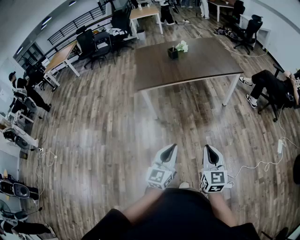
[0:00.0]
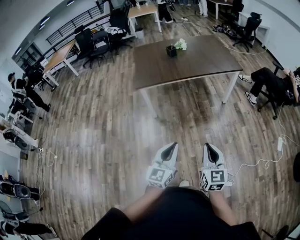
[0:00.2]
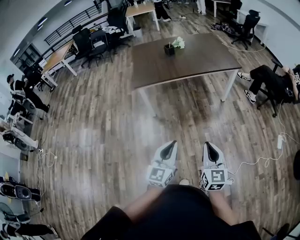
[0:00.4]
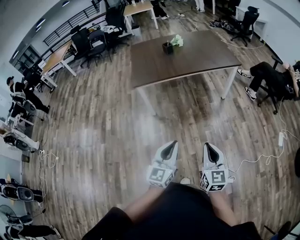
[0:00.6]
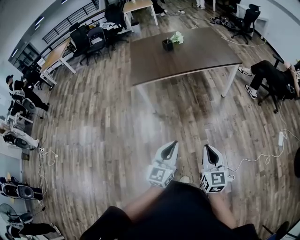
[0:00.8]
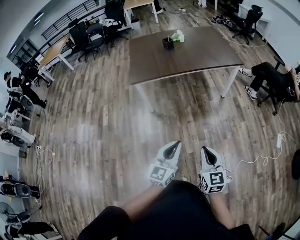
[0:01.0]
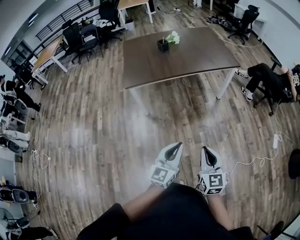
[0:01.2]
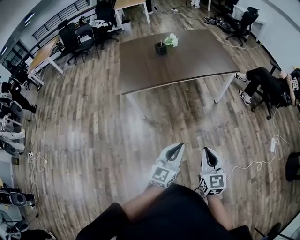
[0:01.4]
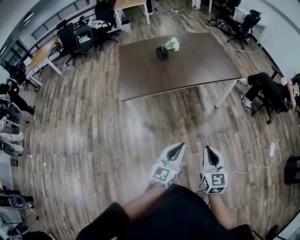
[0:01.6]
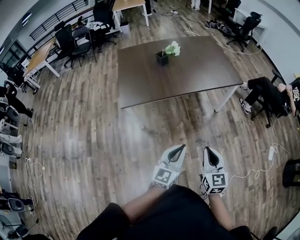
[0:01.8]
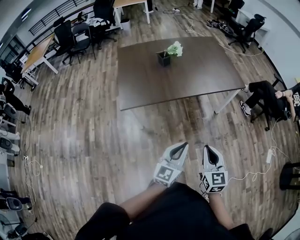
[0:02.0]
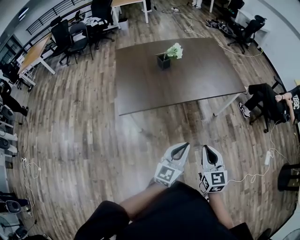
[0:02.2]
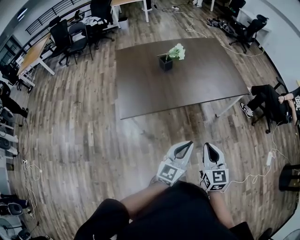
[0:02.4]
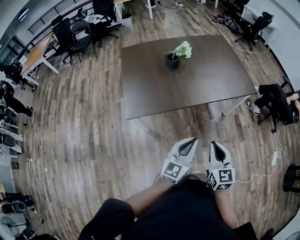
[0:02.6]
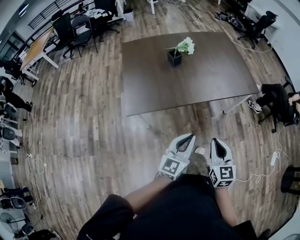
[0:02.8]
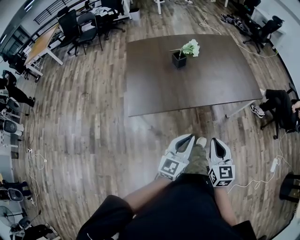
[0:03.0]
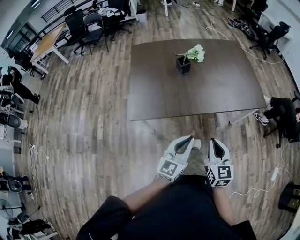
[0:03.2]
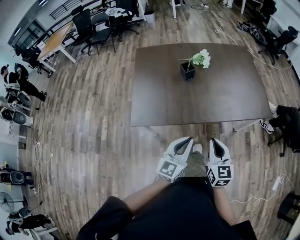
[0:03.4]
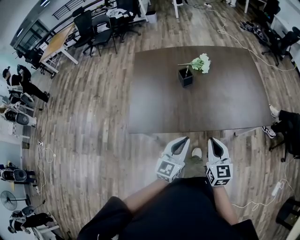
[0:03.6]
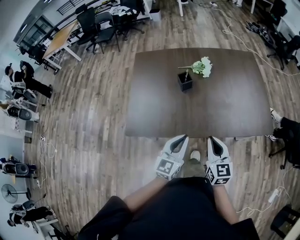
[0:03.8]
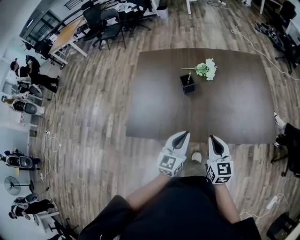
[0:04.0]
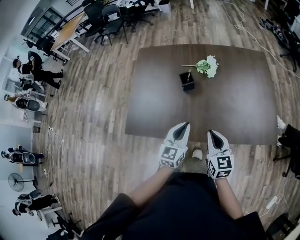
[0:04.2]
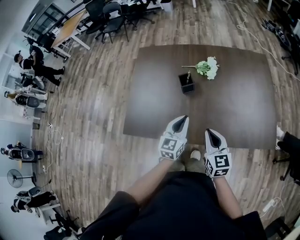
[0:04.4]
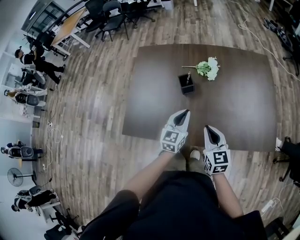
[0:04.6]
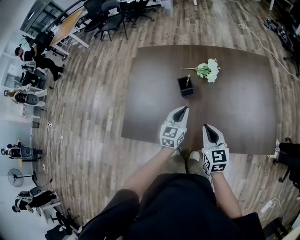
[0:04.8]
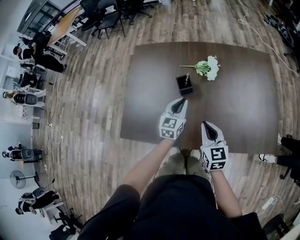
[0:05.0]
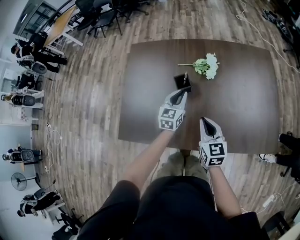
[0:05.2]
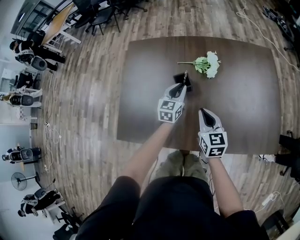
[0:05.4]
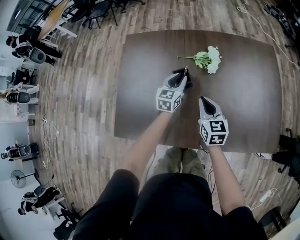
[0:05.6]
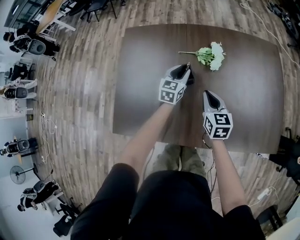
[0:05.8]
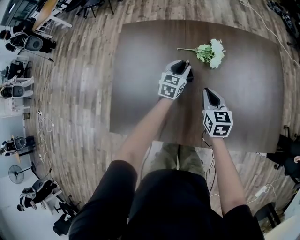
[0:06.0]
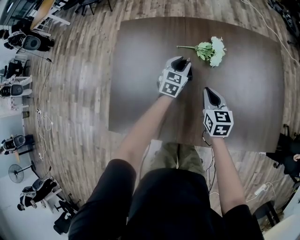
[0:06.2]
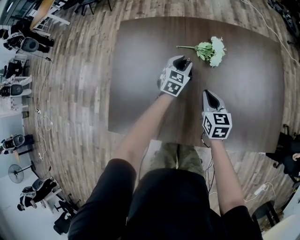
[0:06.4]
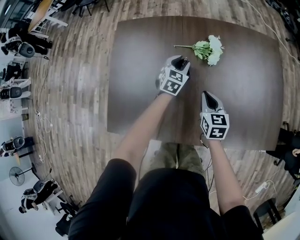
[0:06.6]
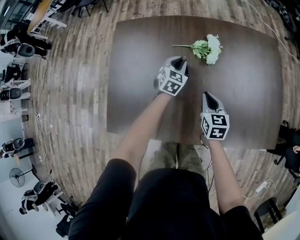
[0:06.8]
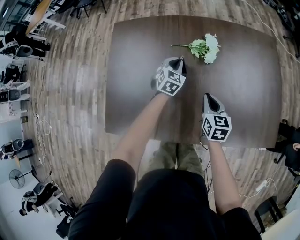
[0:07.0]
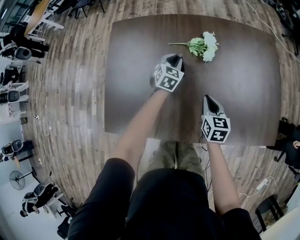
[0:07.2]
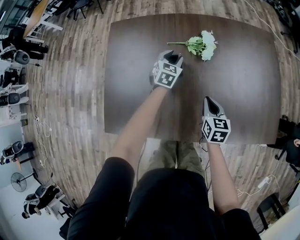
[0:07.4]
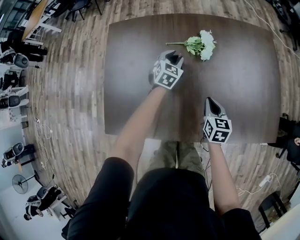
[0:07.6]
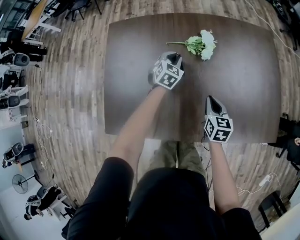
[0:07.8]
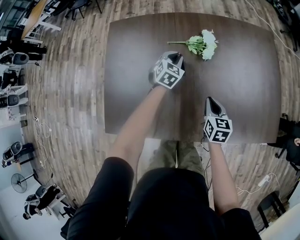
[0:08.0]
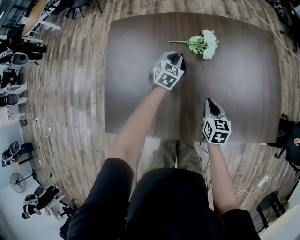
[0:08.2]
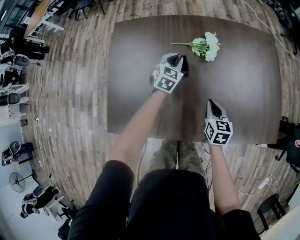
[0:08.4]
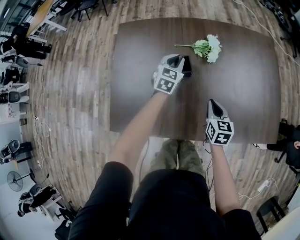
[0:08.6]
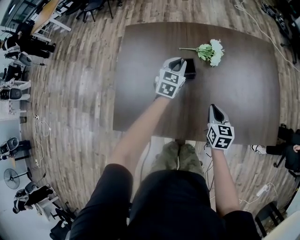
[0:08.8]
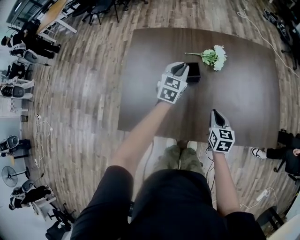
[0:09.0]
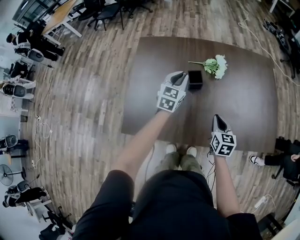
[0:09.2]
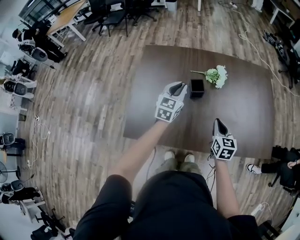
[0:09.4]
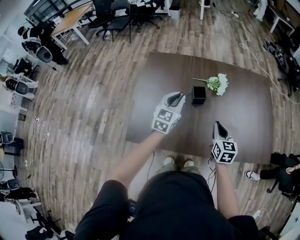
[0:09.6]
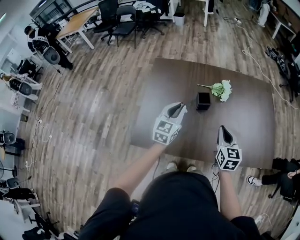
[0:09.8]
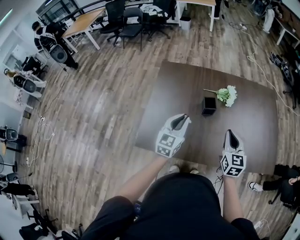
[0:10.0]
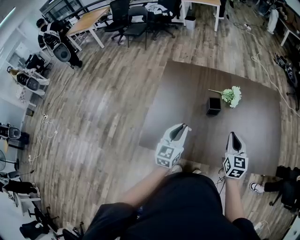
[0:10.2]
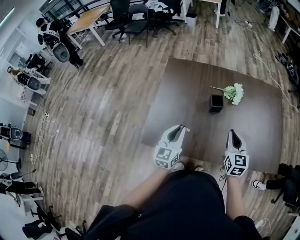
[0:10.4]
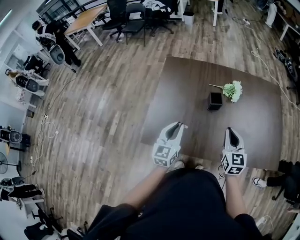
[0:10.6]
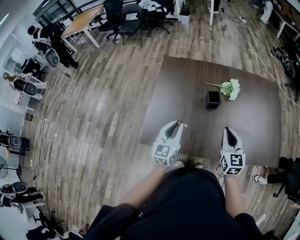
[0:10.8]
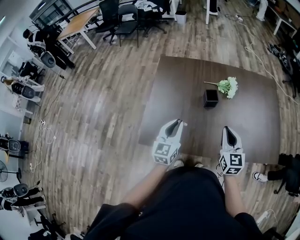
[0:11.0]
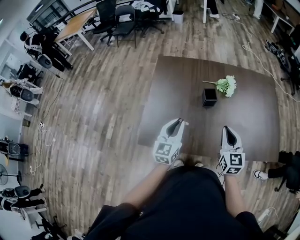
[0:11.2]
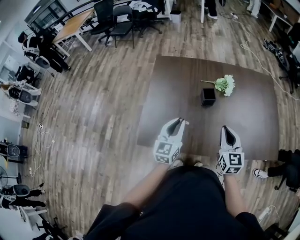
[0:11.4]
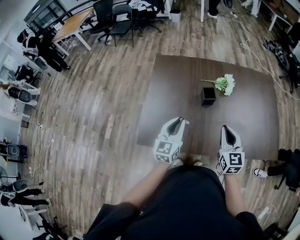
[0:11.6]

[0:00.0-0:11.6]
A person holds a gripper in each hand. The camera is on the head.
0:00.0 to 0:01.4: Both grippers move forward, roughly 20 cm.
0:01.4 to 0:02.8: The grippers both shift forward and to the left by approximately 40 cm.
0:02.8 to 0:04.4: The pair of grippers is taken roughly 50 cm. The right gripper changes its angle by about 30 degrees. Meanwhile the left gripper turns by about 30 degrees.
0:04.4 to 0:05.8: Both grippers move forward and downward, some 30 cm. The left gripper opens its fingers.
0:05.8 to 0:07.2: Both grippers move downward, roughly 5 cm. The left gripper rotates approximately 20 degrees.
0:07.2 to 0:08.8: The left gripper heads upward and backward, covering roughly 10 cm, and opens and closes again. Meanwhile the right gripper goes some 5 cm backward.
0:08.8 to 0:10.2: The right gripper shifts some 20 cm upward, and rotates about 20 degrees; the left gripper travels backward, upward and to the left by about 35 cm, and rotates roughly 20 degrees.
0:10.2 to 0:11.6: There are only small adjustments of the grippers.

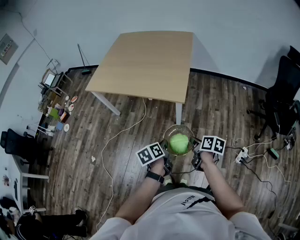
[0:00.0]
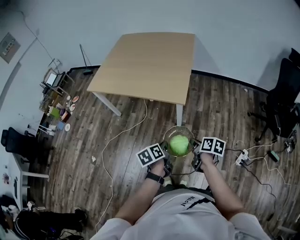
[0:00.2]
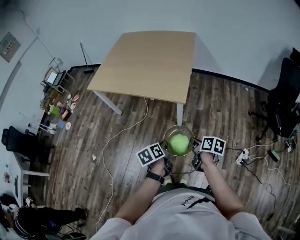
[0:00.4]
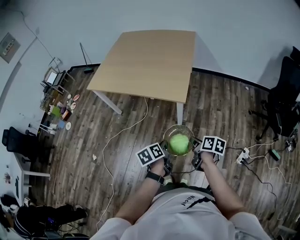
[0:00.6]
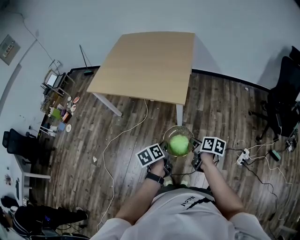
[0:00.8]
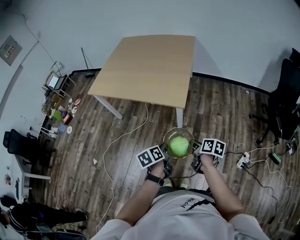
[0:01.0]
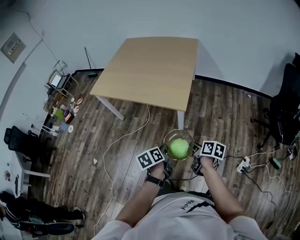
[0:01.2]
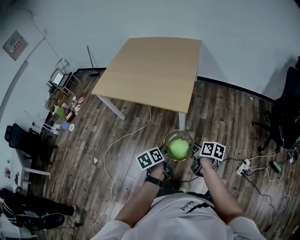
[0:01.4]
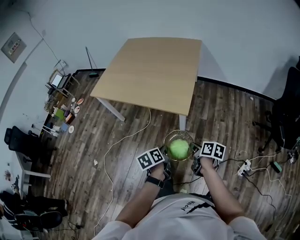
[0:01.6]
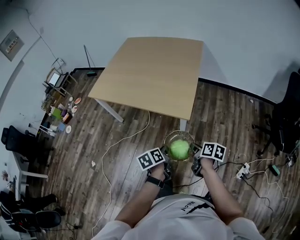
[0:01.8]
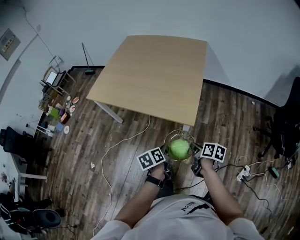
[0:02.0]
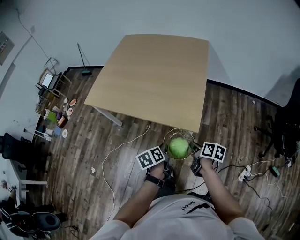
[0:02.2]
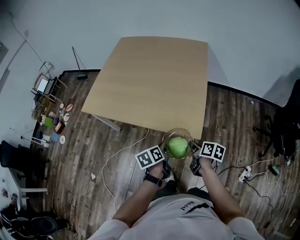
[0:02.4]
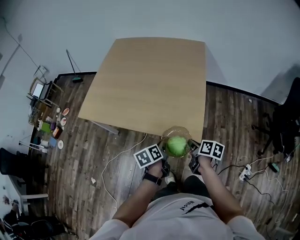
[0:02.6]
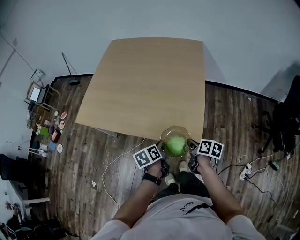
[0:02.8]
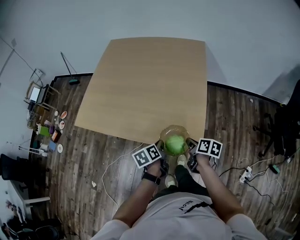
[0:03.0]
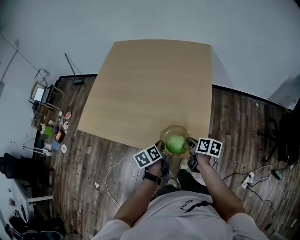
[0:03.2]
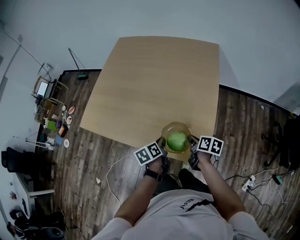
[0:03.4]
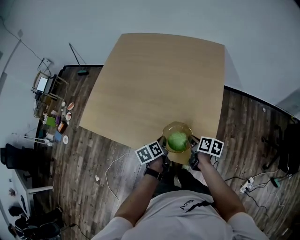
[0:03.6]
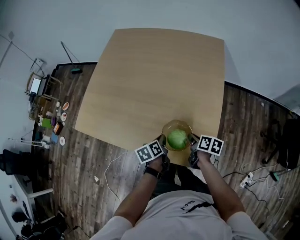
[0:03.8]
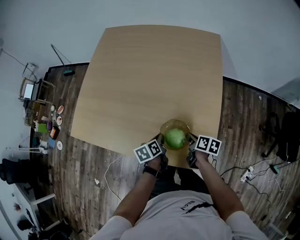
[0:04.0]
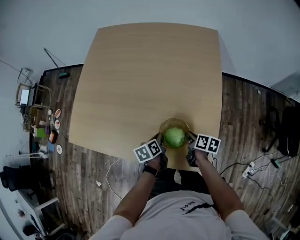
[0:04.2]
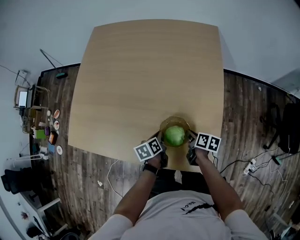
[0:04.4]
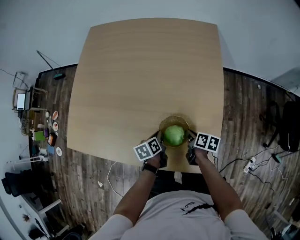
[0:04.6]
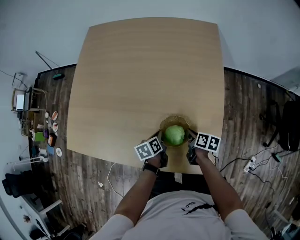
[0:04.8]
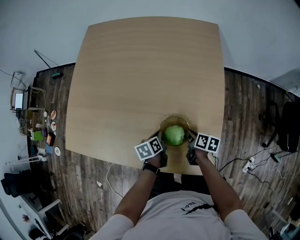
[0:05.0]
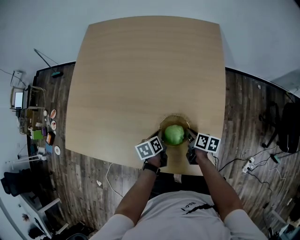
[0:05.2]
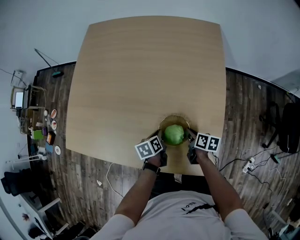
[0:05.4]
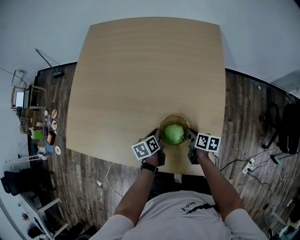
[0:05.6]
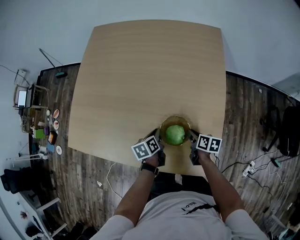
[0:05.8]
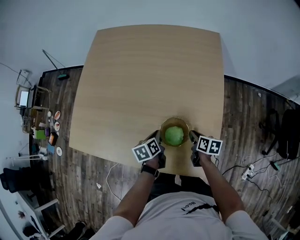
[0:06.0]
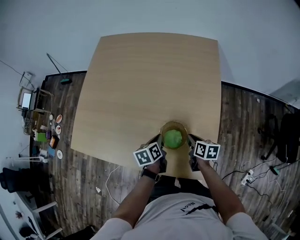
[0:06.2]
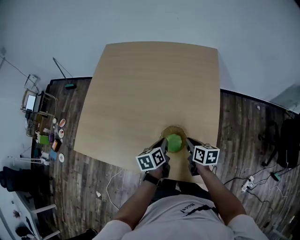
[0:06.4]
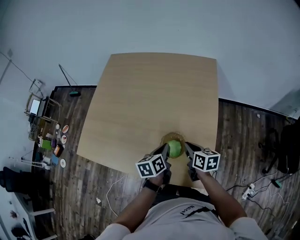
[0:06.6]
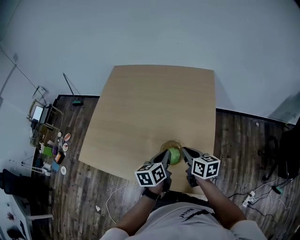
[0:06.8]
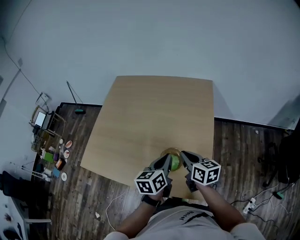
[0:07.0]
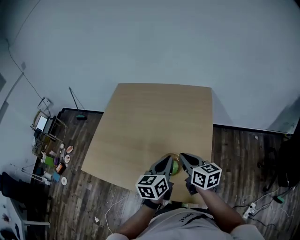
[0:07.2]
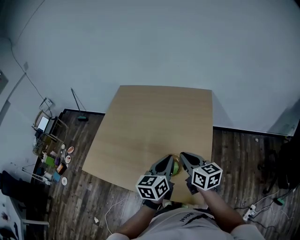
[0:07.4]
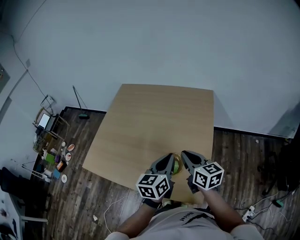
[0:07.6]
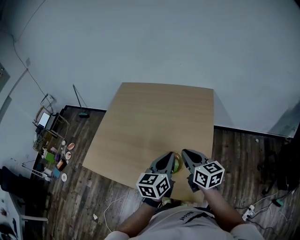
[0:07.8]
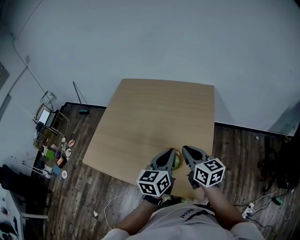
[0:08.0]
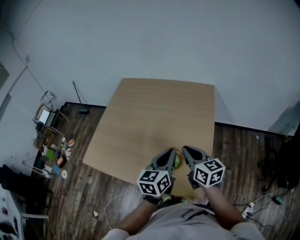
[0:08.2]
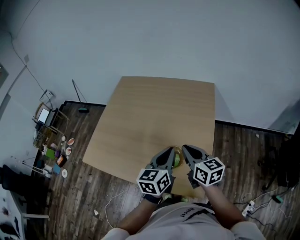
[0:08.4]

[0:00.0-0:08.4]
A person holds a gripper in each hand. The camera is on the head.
0:00.0 to 0:01.4: The grippers move only a little.
0:01.4 to 0:02.8: The grippers both shift forward by approximately 30 cm.
0:02.8 to 0:04.2: The two grippers go about 25 cm forward and downward.
0:04.2 to 0:05.6: The right gripper shifts by approximately 5 cm; the left gripper moves forward, roughly 5 cm.
0:05.6 to 0:07.0: Both grippers travel together upward, approximately 30 cm. The left gripper rotates approximately 30 degrees. The right gripper changes its angle by roughly 40 degrees.
0:07.0 to 0:08.4: Both grippers travel together upward, approximately 5 cm.

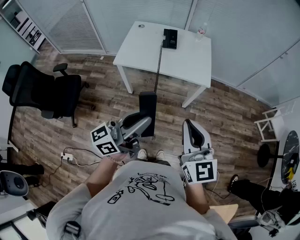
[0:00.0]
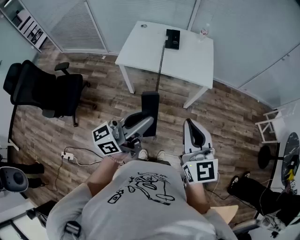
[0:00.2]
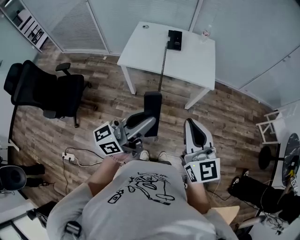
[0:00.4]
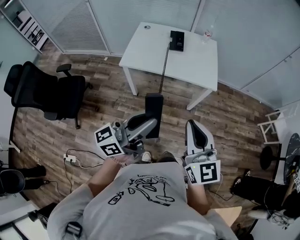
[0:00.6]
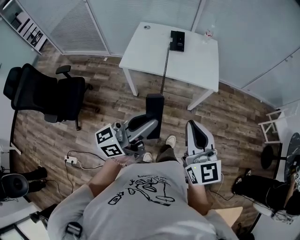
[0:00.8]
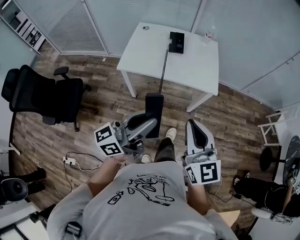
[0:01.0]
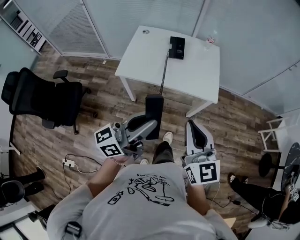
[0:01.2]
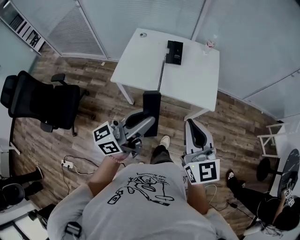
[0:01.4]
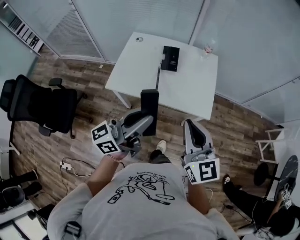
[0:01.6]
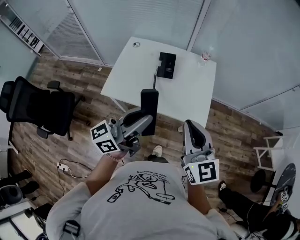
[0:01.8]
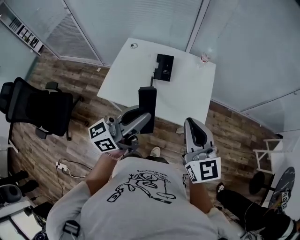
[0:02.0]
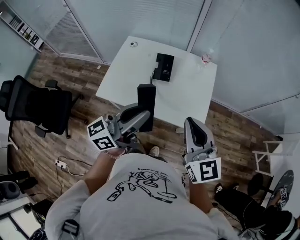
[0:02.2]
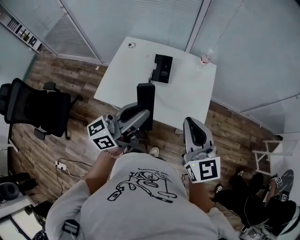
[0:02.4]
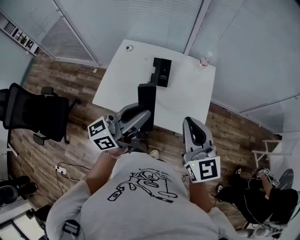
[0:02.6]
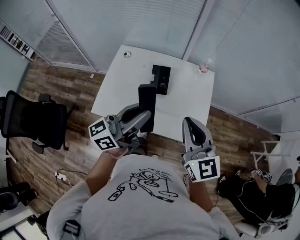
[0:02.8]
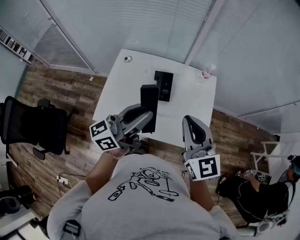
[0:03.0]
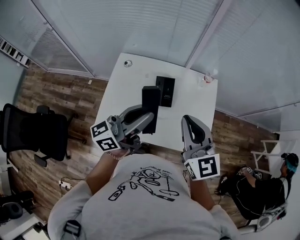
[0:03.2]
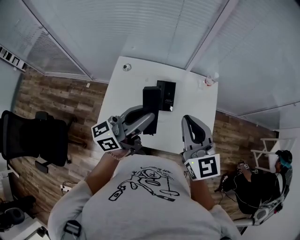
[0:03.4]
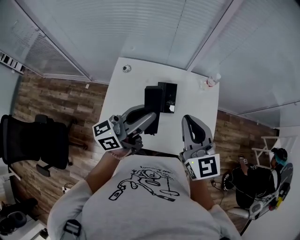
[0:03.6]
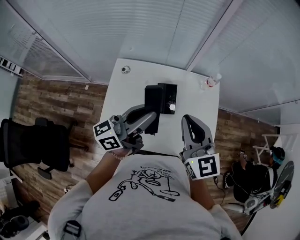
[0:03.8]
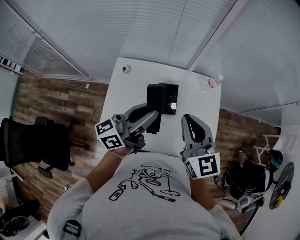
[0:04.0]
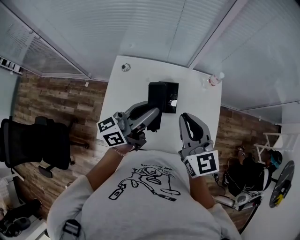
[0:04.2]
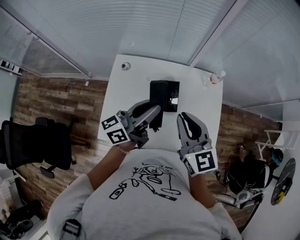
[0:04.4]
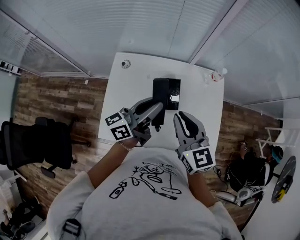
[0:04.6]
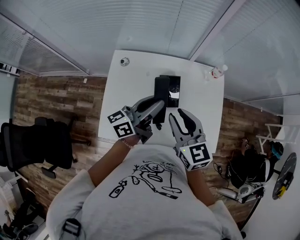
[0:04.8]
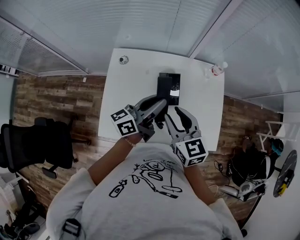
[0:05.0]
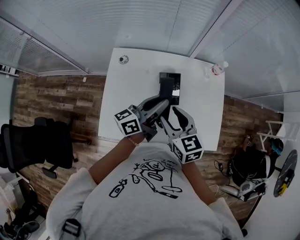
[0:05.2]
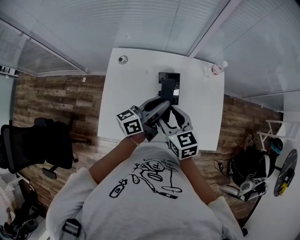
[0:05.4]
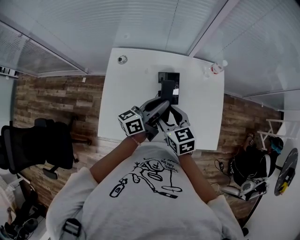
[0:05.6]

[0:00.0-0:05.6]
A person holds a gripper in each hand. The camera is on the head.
0:00.0 to 0:01.4: The two grippers go roughly 20 cm forward.
0:01.4 to 0:02.8: The grippers both shift forward by some 30 cm.
0:02.8 to 0:04.2: The grippers both shift forward and to the left by roughly 20 cm.
0:04.2 to 0:05.6: The two grippers go roughly 15 cm downward. The right gripper rotates about 30 degrees, and opens its fingers.
